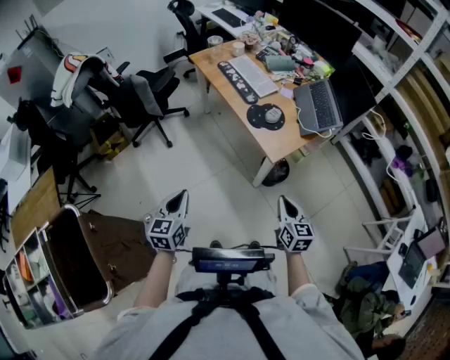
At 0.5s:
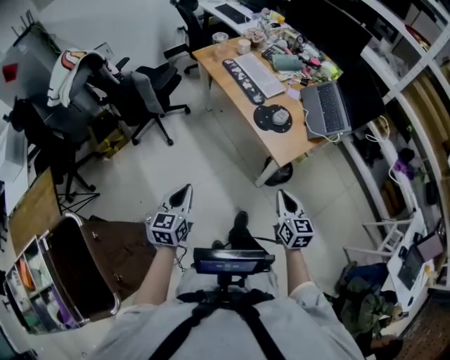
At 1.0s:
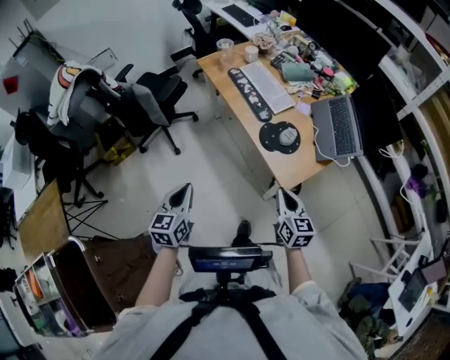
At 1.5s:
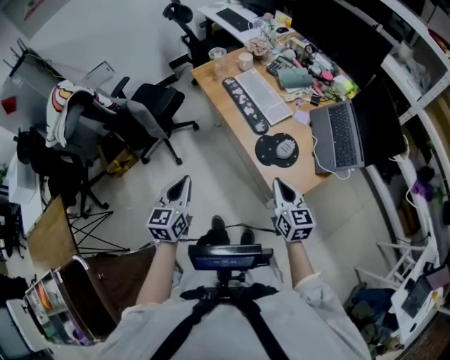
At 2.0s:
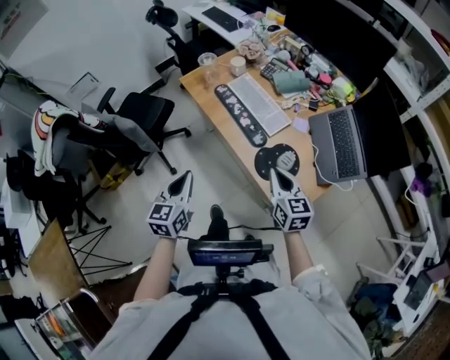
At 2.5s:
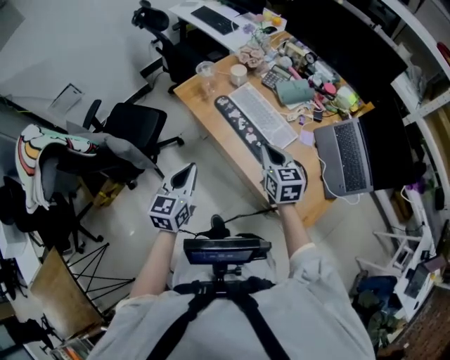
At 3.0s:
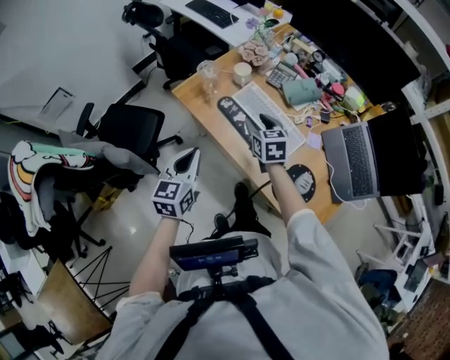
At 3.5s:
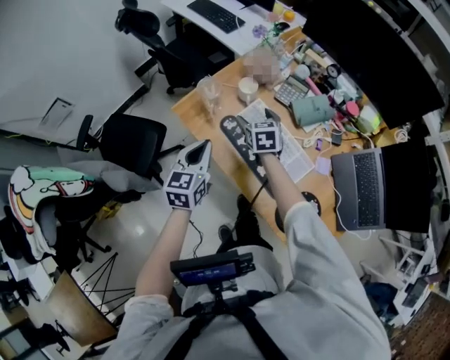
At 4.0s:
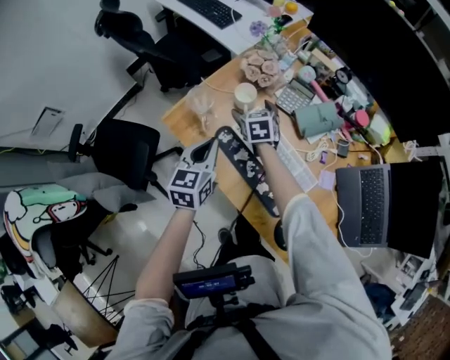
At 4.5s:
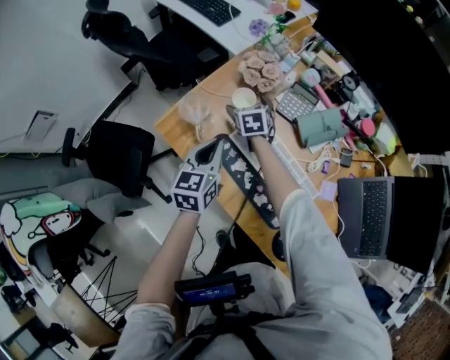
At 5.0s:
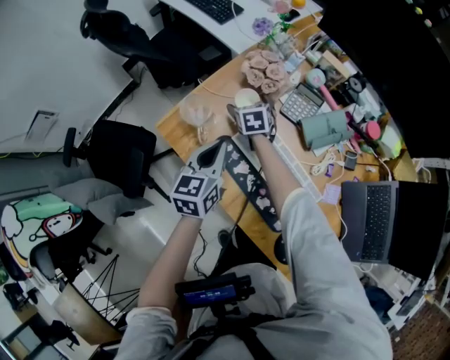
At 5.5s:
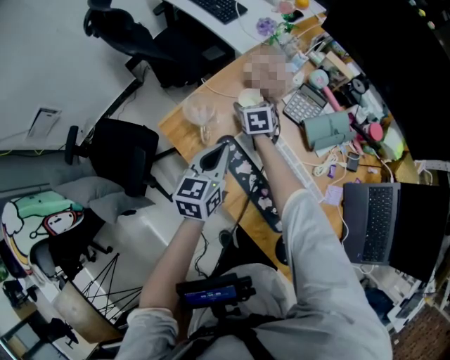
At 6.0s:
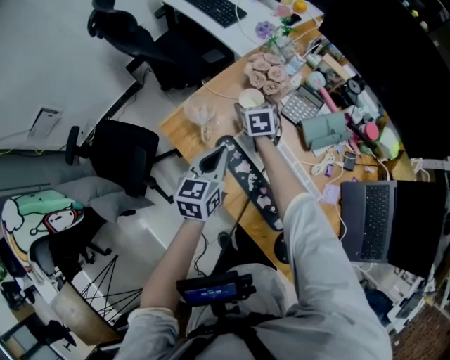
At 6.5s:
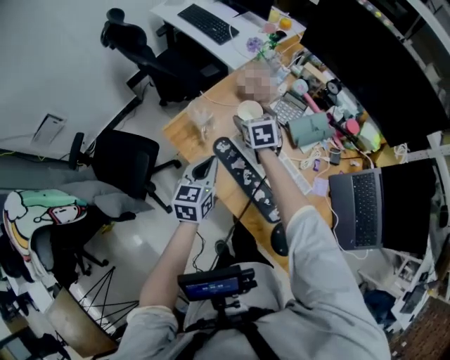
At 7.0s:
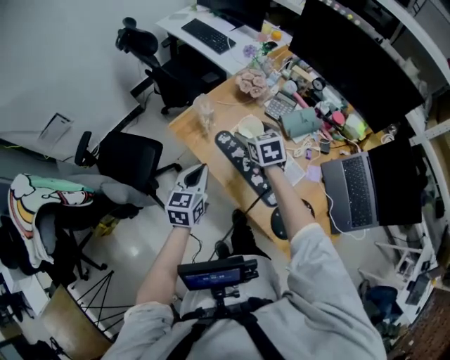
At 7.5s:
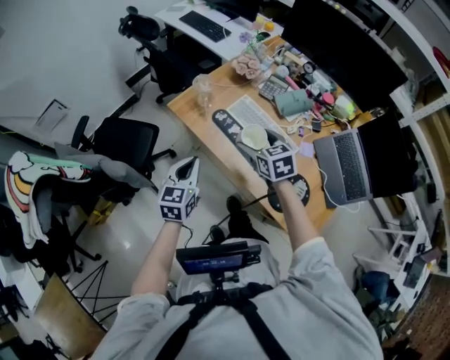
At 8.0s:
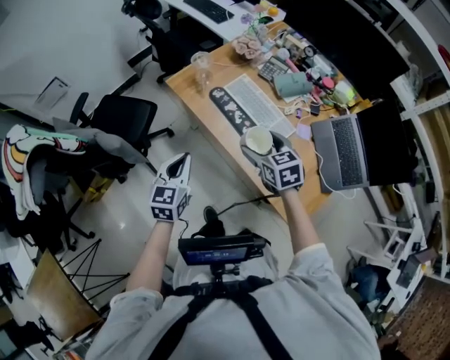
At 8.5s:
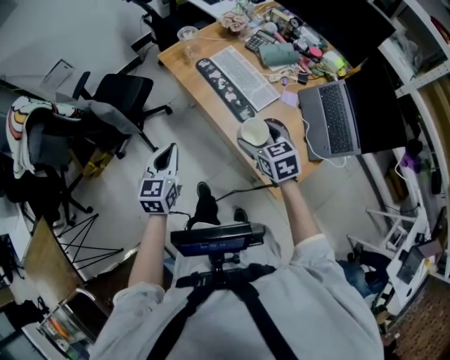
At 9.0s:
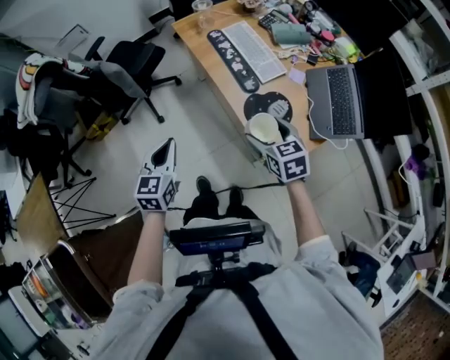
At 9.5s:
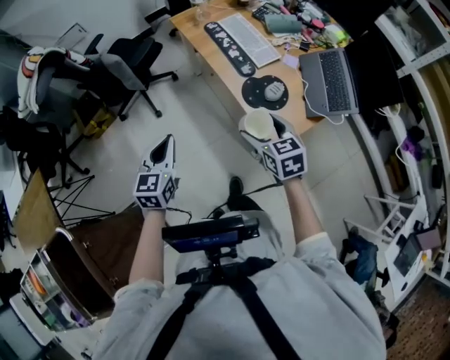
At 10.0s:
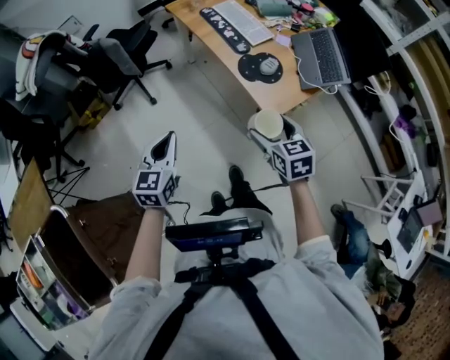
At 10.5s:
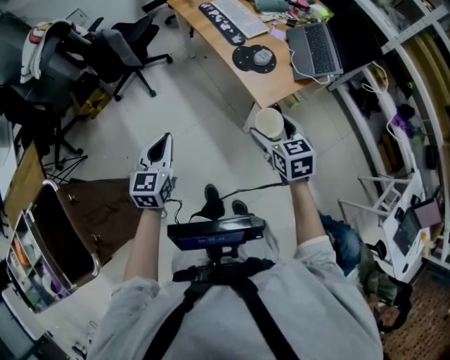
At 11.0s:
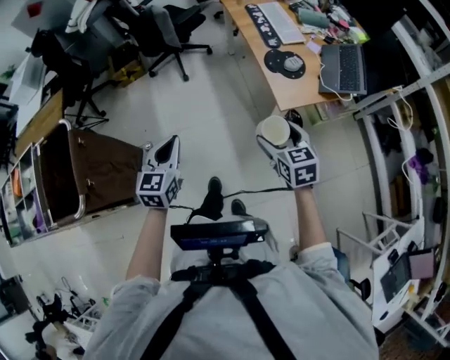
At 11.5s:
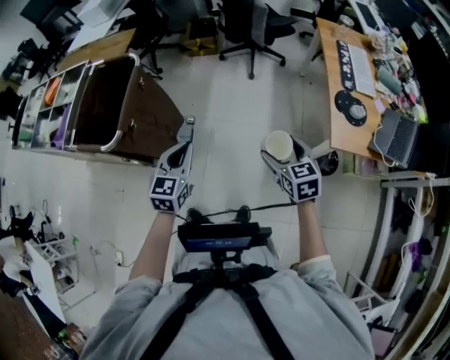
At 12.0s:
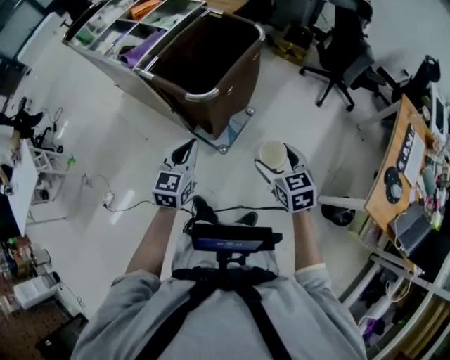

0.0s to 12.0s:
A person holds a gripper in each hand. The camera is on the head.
0.0s to 2.0s: The two grippers go some 40 cm forward.
2.0s to 4.0s: The two grippers travel together, forward, some 60 cm. The right gripper swivels about 30 degrees, and opens up.
4.0s to 6.0s: The right gripper shifts about 5 cm forward.
6.0s to 8.0s: The right gripper heads backward and upward, covering some 50 cm. Meanwhile the left gripper is displaced backward by some 35 cm.
8.0s to 10.0s: Both grippers are carried backward, approximately 50 cm.
10.0s to 12.0s: The two grippers travel together, about 50 cm. The right gripper changes its angle by about 70 degrees; the left gripper changes its angle by about 60 degrees.

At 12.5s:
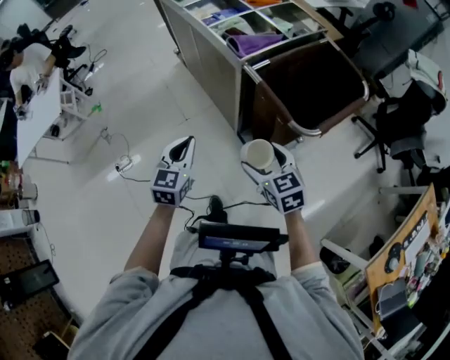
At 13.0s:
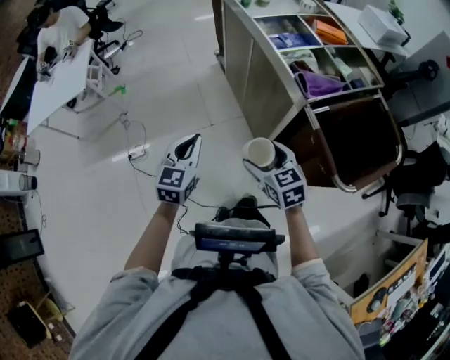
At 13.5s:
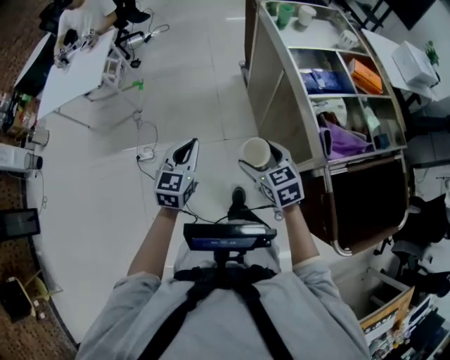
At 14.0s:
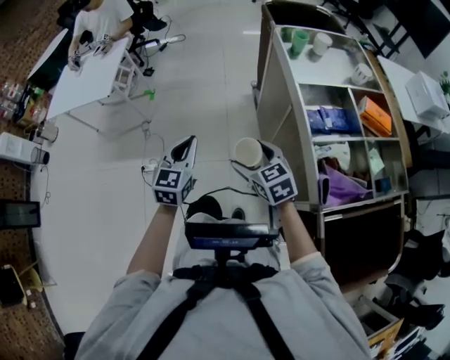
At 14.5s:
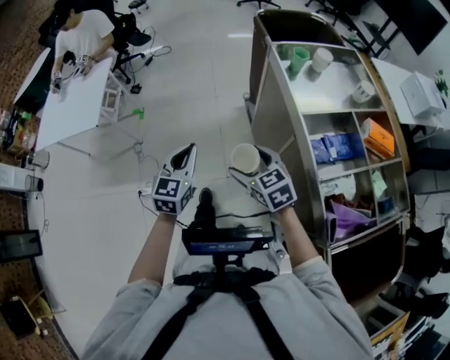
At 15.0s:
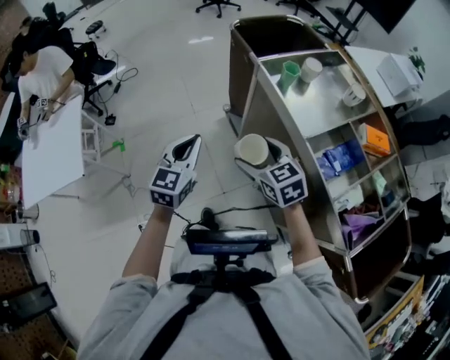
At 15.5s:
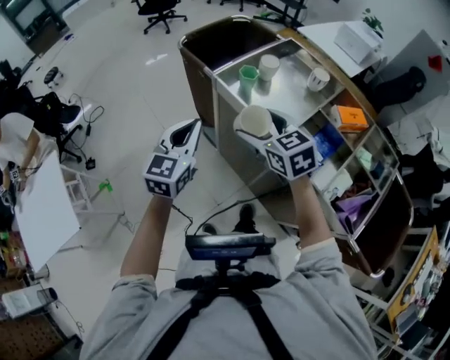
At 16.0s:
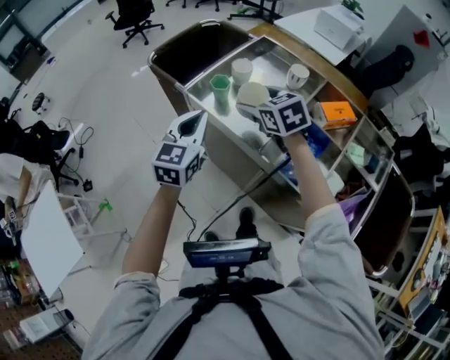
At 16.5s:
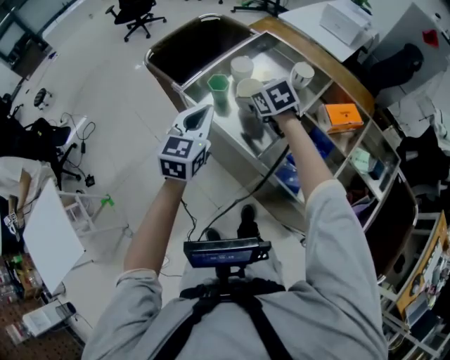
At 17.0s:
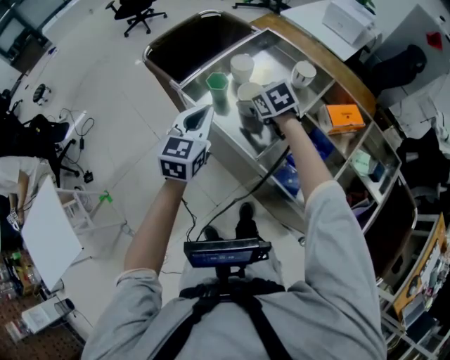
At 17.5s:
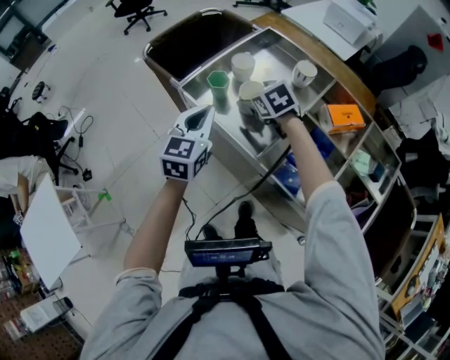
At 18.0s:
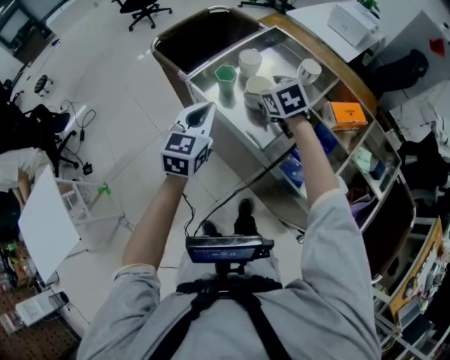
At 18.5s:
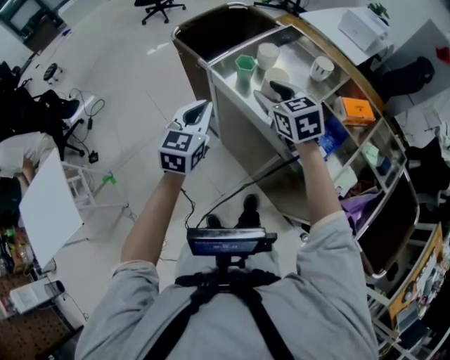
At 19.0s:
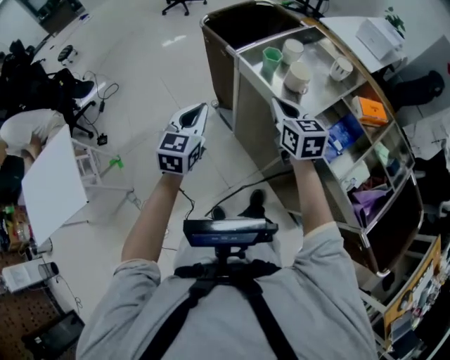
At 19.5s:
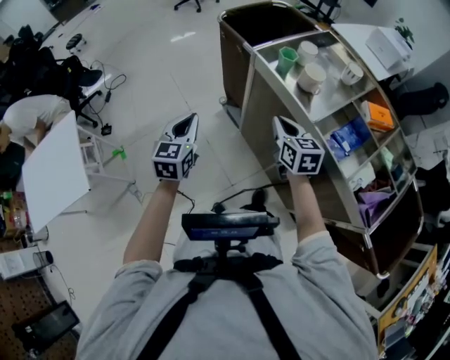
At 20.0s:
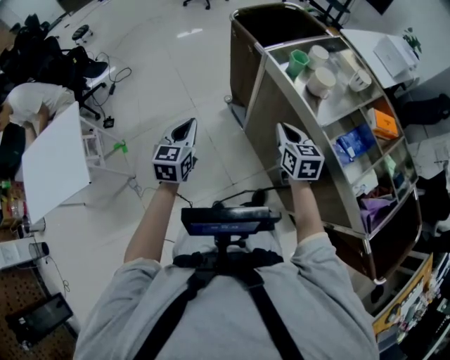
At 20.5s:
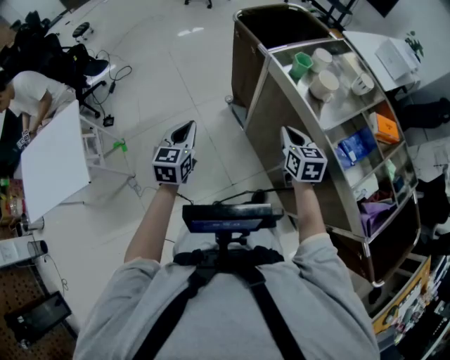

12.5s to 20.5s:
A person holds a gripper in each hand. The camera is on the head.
12.5s to 14.5s: Both grippers are carried roughly 50 cm. The right gripper swivels roughly 30 degrees. Meanwhile the left gripper changes its angle by some 20 degrees.
14.5s to 16.5s: The pair of grippers is taken approximately 40 cm. The right gripper swivels about 40 degrees, while the left gripper rotates about 40 degrees.
16.5s to 18.5s: The left gripper shifts about 10 cm to the left and backward. The right gripper moves backward and upward, some 10 cm, and closes.
18.5s to 20.5s: The right gripper travels downward, backward and to the left by roughly 20 cm, and closes its fingers, while the left gripper heads to the left, downward and backward, covering some 25 cm, and changes its angle by approximately 20 degrees.

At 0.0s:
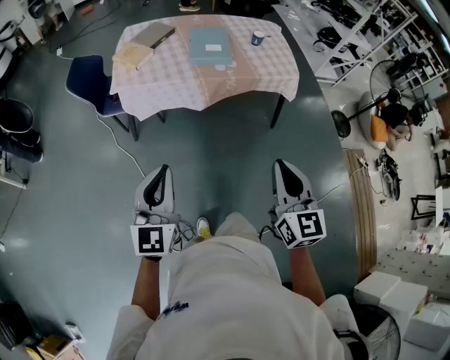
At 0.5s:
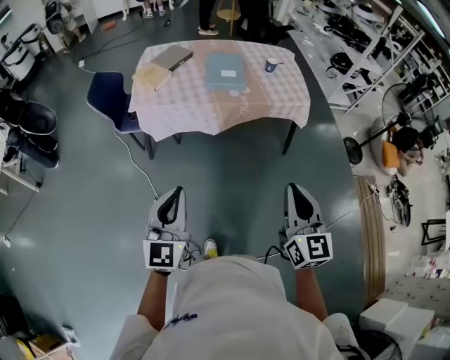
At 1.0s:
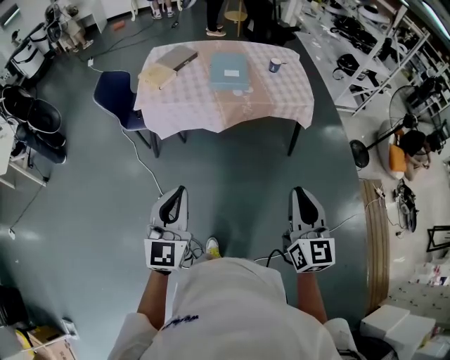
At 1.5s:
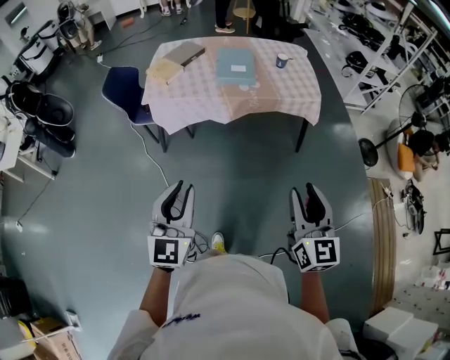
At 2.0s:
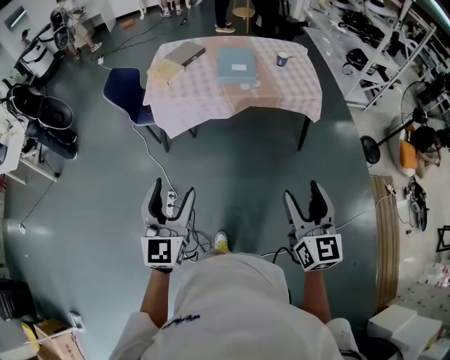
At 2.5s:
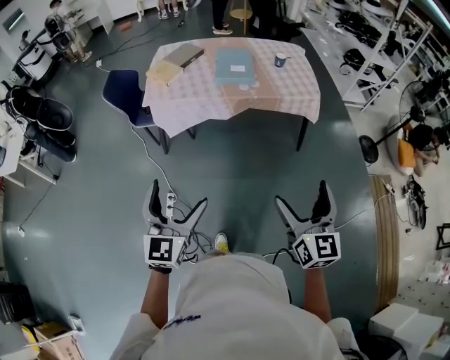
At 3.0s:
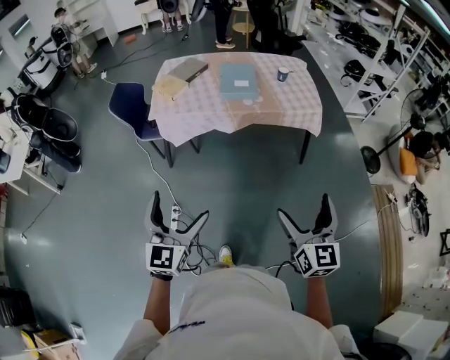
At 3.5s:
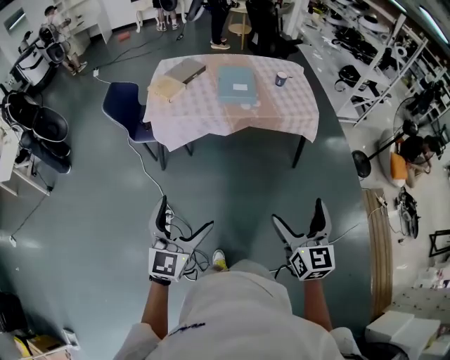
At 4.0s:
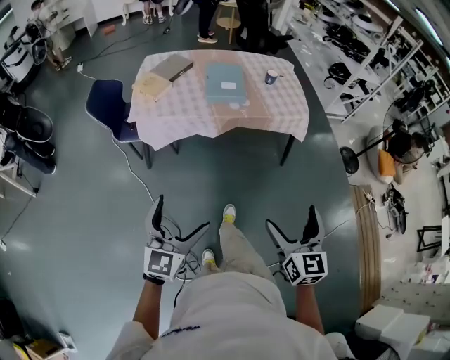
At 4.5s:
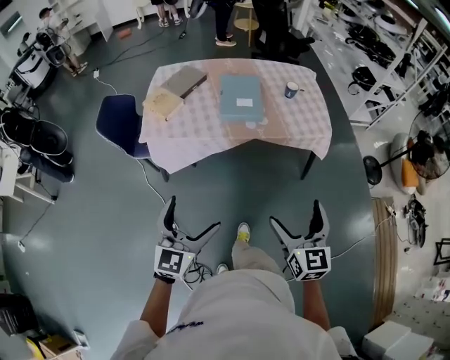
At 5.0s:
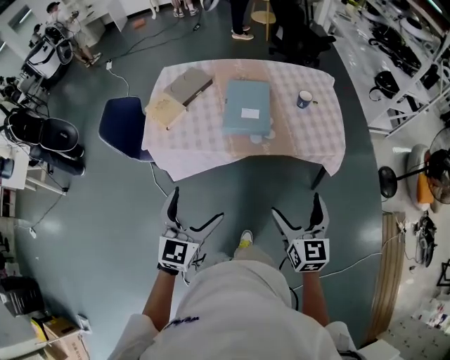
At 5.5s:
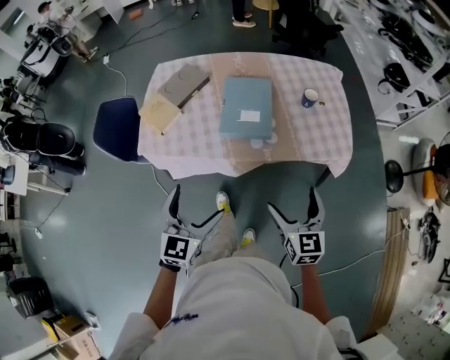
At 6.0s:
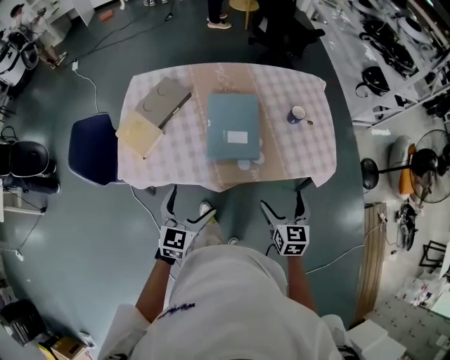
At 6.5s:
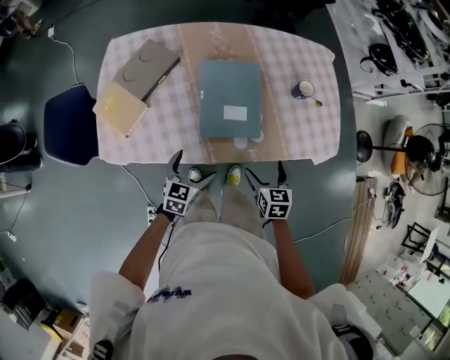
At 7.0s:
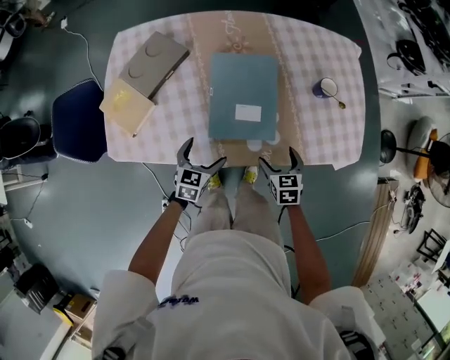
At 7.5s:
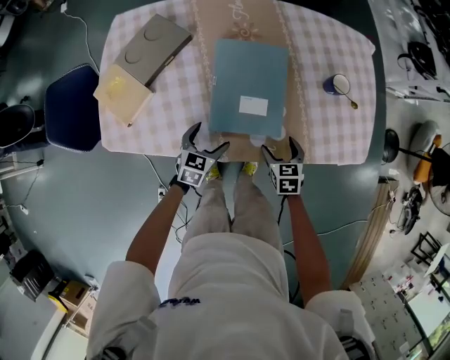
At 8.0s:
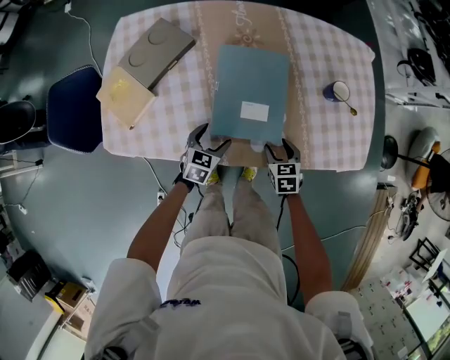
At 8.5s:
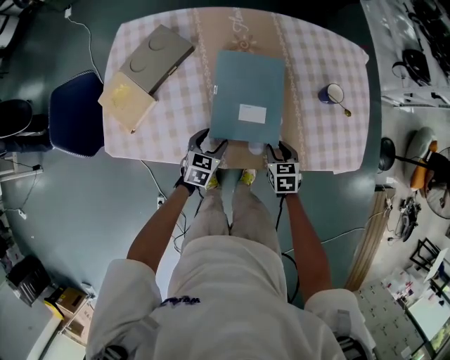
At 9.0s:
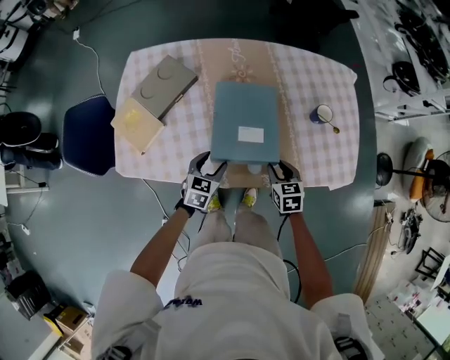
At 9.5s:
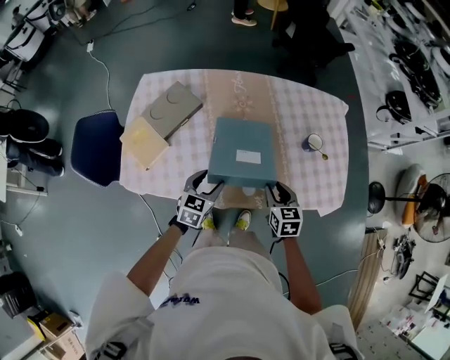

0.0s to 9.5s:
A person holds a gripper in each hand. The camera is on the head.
0.0s to 2.0s: The left gripper shifts some 5 cm backward, and opens, while the right gripper moves to the right and backward, approximately 10 cm, and opens its fingers.
2.0s to 4.0s: The right gripper shifts by roughly 5 cm, and opens up. The left gripper travels forward by approximately 5 cm, and opens.
4.0s to 5.5s: The grippers both shift forward by some 40 cm.
5.5s to 7.5s: The two grippers go some 40 cm downward and forward. The right gripper tilts its fingers some 30 degrees downward. Meanwhile the left gripper changes its angle by about 30 degrees.
7.5s to 9.5s: Both grippers move upward, roughly 15 cm. The right gripper closes.
